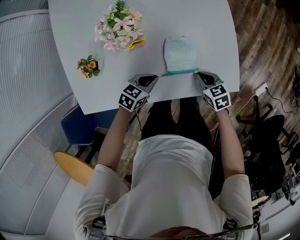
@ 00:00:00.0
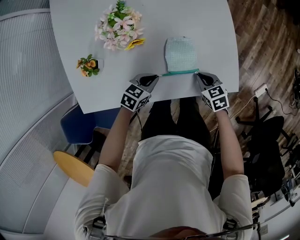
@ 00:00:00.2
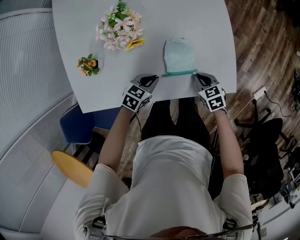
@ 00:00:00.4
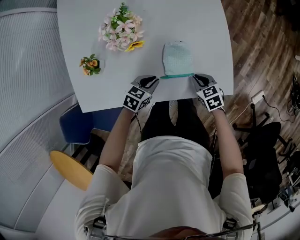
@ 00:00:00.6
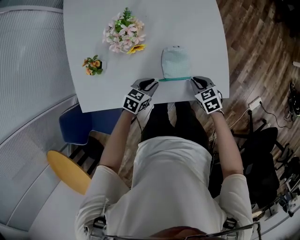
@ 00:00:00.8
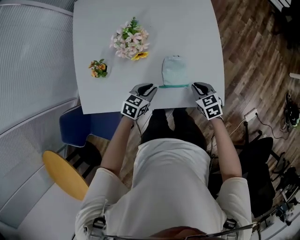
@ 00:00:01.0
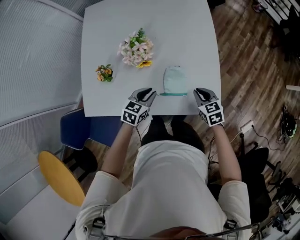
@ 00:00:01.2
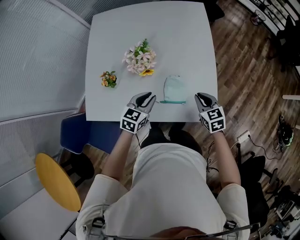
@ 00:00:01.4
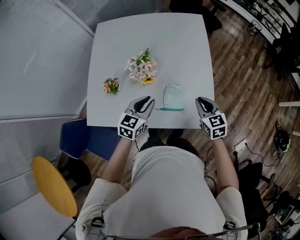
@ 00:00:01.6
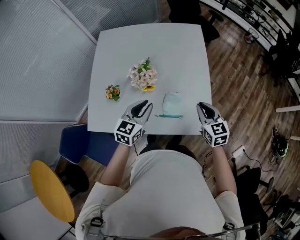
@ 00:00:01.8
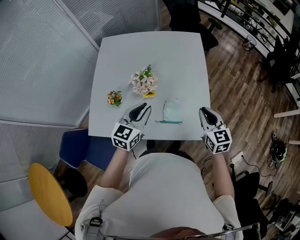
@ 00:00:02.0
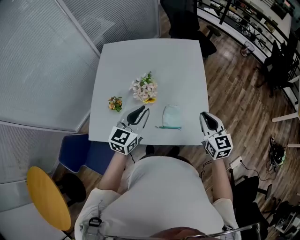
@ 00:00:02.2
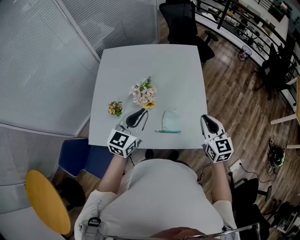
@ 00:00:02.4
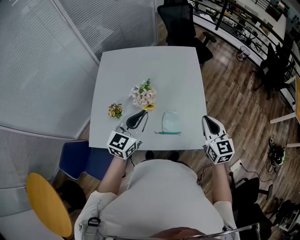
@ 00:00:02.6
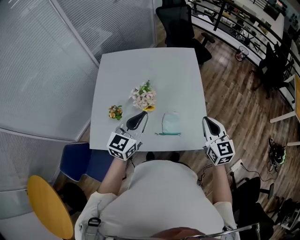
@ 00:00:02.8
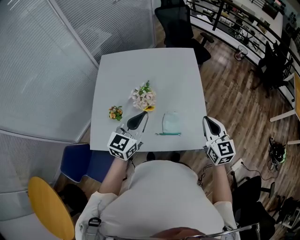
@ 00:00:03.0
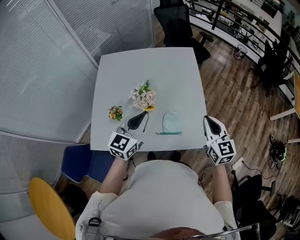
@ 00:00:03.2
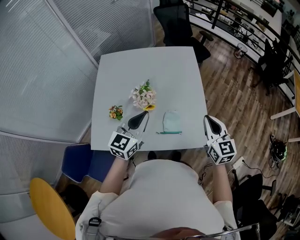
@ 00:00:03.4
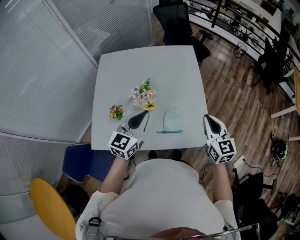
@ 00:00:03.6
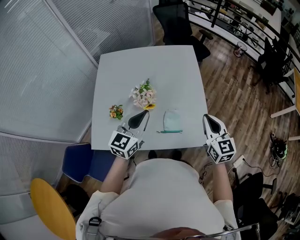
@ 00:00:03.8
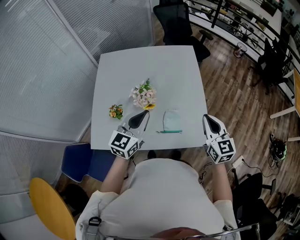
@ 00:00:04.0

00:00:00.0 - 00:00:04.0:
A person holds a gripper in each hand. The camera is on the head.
00:00:00.0 - 00:00:01.4: The two grippers go roughly 20 cm upward. The right gripper turns by about 20 degrees. The left gripper rotates approximately 30 degrees.
00:00:01.4 - 00:00:02.6: Both grippers travel together upward, roughly 25 cm. The right gripper swivels approximately 30 degrees; the left gripper rotates about 20 degrees.
00:00:02.6 - 00:00:04.0: The grippers stay close to where they were, moving slightly.

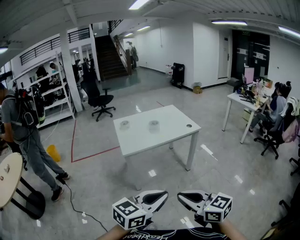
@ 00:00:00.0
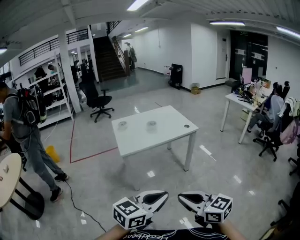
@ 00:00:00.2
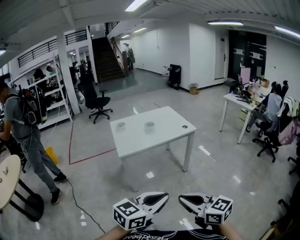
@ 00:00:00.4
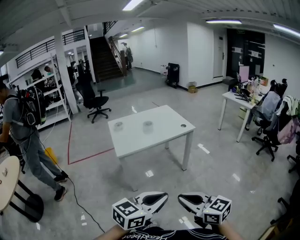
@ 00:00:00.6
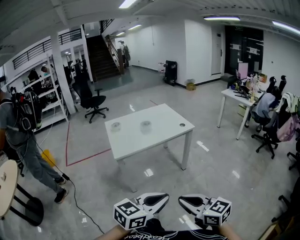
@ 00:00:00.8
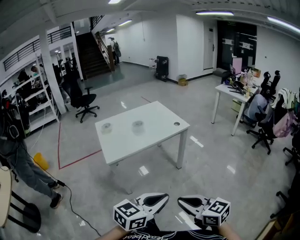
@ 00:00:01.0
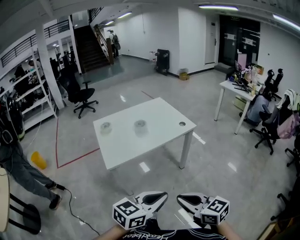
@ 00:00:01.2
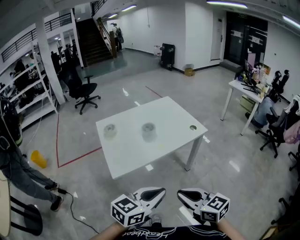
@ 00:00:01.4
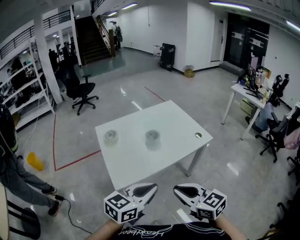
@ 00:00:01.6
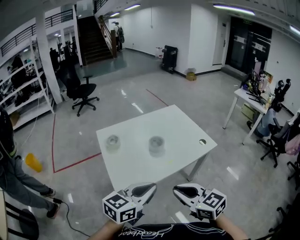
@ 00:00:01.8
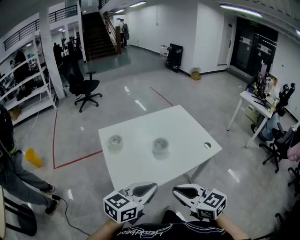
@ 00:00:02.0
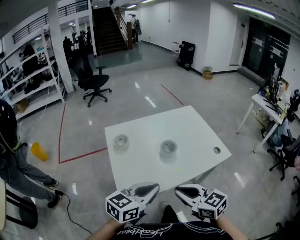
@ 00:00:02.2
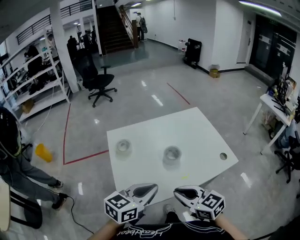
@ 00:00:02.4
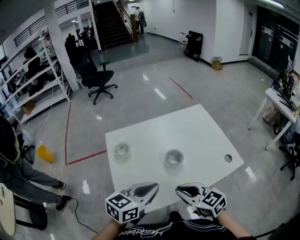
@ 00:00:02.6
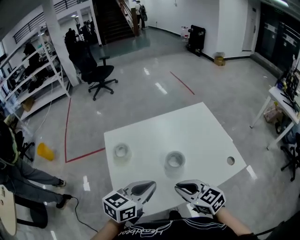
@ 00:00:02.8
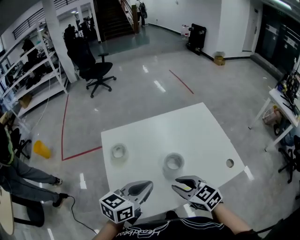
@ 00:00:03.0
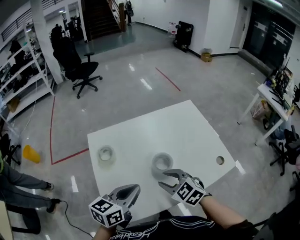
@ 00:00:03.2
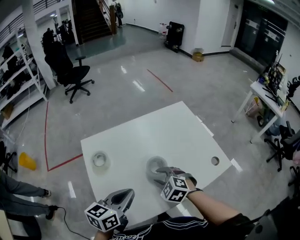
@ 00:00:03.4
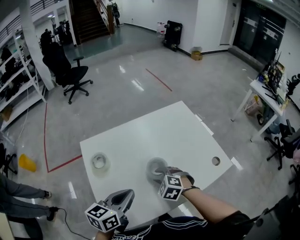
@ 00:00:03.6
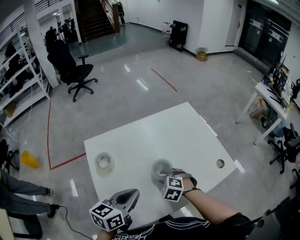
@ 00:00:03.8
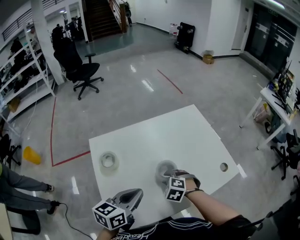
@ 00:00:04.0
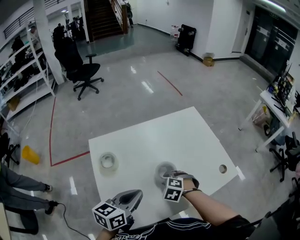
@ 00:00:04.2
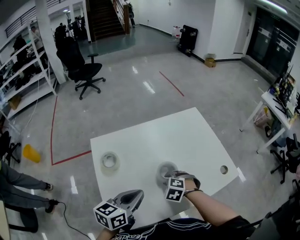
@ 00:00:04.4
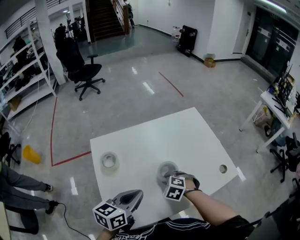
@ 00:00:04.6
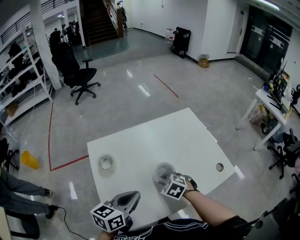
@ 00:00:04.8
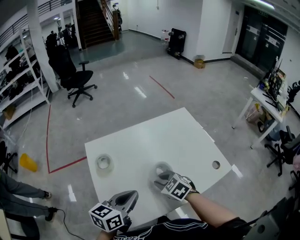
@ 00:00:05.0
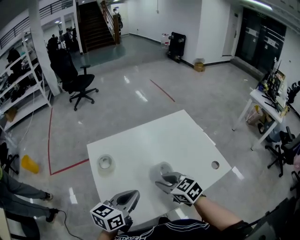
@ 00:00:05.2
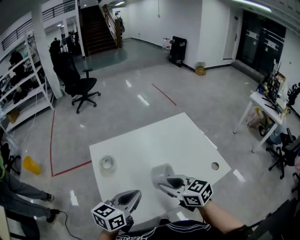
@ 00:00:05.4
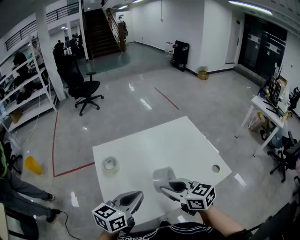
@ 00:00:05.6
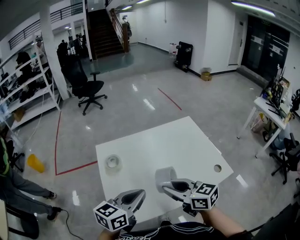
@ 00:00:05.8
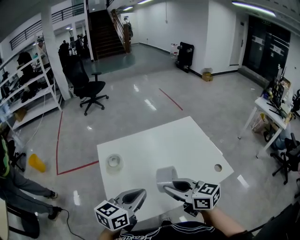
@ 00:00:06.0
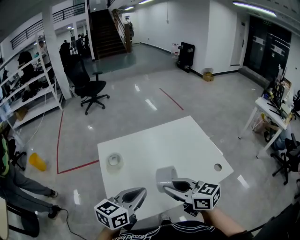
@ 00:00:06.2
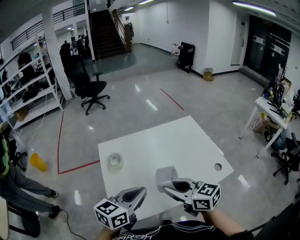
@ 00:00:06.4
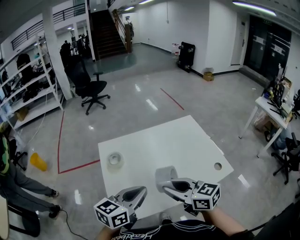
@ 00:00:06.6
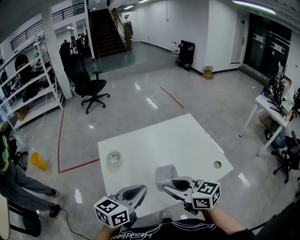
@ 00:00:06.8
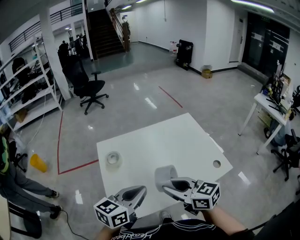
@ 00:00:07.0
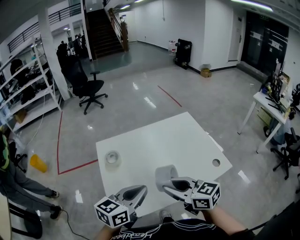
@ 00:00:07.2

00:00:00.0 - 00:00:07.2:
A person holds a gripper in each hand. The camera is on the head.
00:00:00.0 - 00:00:01.4: The grippers both shift forward by some 25 cm.
00:00:01.4 - 00:00:02.8: The grippers both shift forward by approximately 30 cm. The right gripper changes its angle by roughly 20 degrees.
00:00:02.8 - 00:00:04.4: The left gripper changes place by approximately 5 cm. Meanwhile the right gripper shifts some 20 cm downward and forward, angles its fingers downward, by roughly 40 degrees, and opens up.
00:00:04.4 - 00:00:05.8: The left gripper is displaced upward by roughly 5 cm, while the right gripper moves upward, approximately 20 cm, and tilts its fingers approximately 50 degrees upward.
00:00:05.8 - 00:00:07.2: The grippers move only a little.

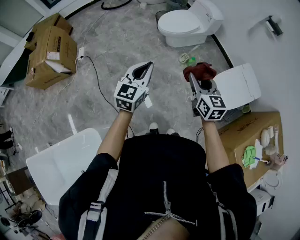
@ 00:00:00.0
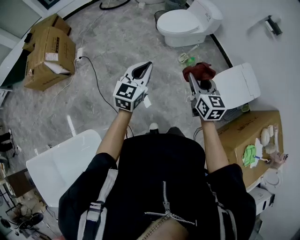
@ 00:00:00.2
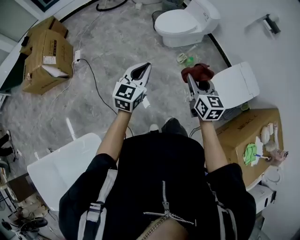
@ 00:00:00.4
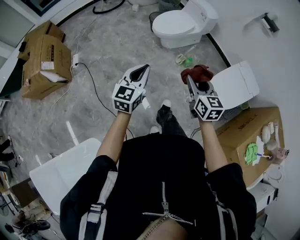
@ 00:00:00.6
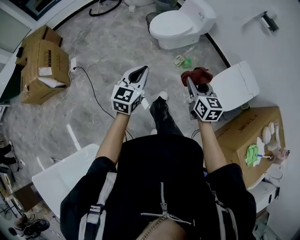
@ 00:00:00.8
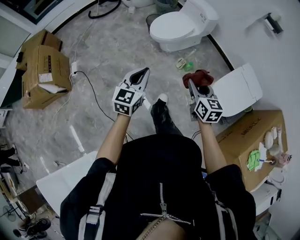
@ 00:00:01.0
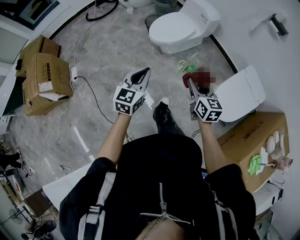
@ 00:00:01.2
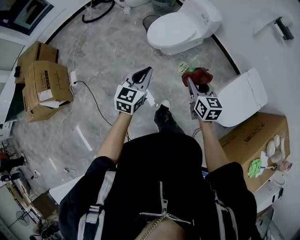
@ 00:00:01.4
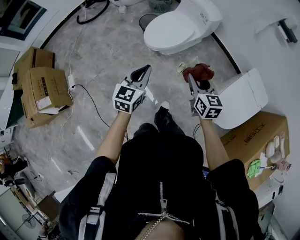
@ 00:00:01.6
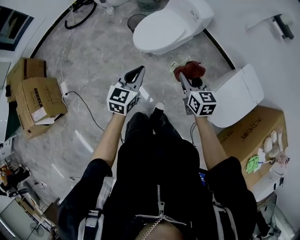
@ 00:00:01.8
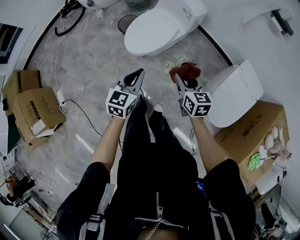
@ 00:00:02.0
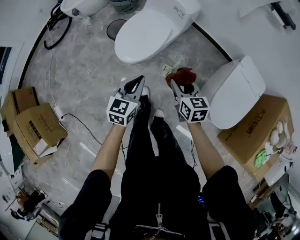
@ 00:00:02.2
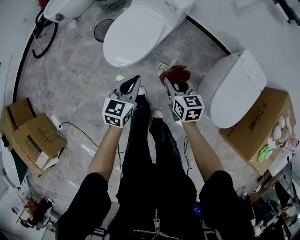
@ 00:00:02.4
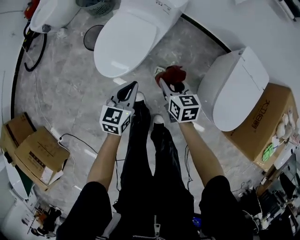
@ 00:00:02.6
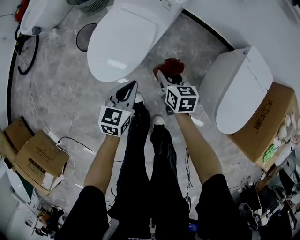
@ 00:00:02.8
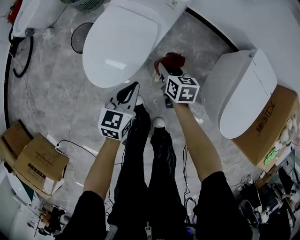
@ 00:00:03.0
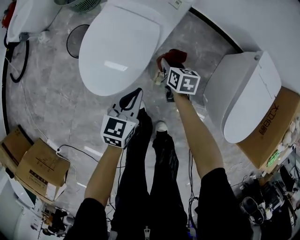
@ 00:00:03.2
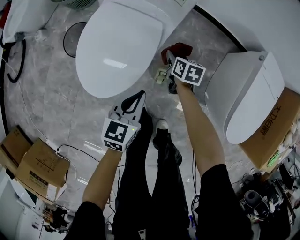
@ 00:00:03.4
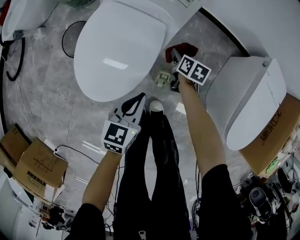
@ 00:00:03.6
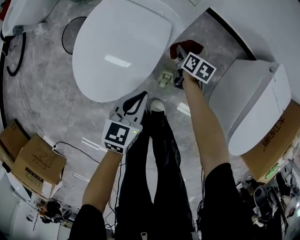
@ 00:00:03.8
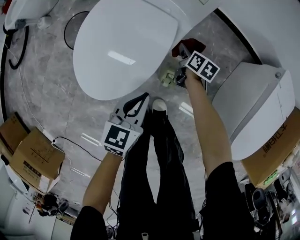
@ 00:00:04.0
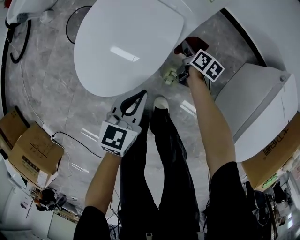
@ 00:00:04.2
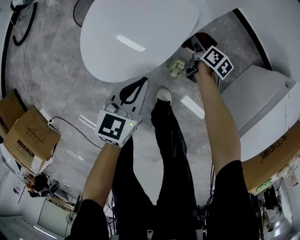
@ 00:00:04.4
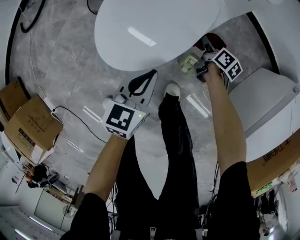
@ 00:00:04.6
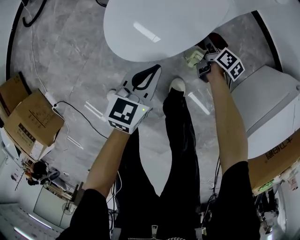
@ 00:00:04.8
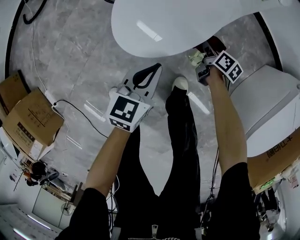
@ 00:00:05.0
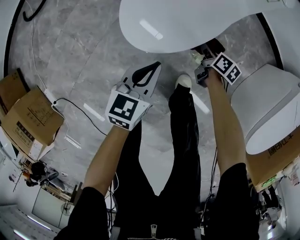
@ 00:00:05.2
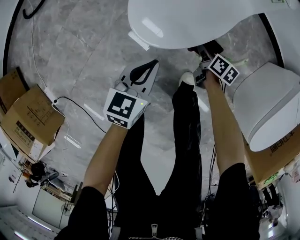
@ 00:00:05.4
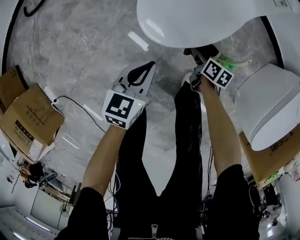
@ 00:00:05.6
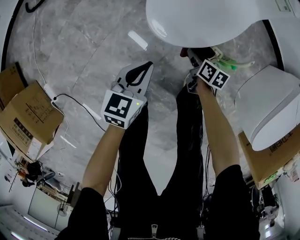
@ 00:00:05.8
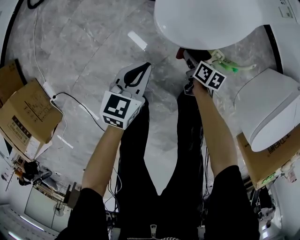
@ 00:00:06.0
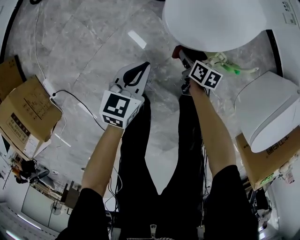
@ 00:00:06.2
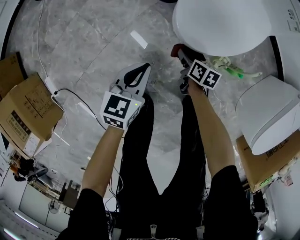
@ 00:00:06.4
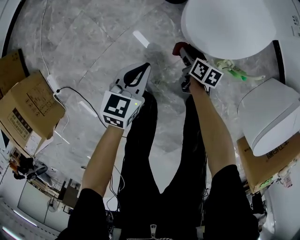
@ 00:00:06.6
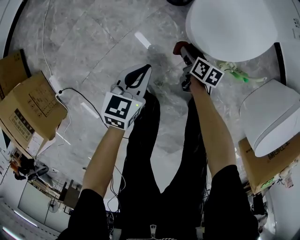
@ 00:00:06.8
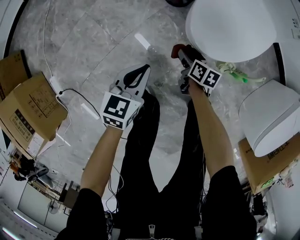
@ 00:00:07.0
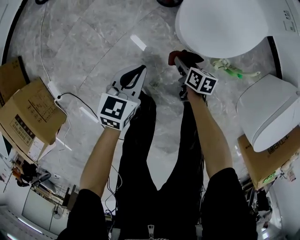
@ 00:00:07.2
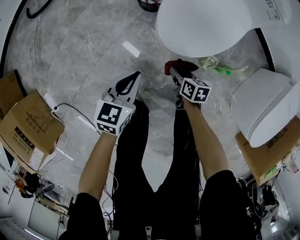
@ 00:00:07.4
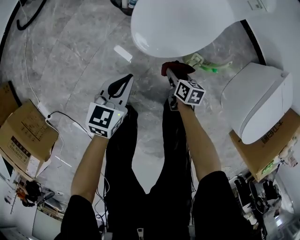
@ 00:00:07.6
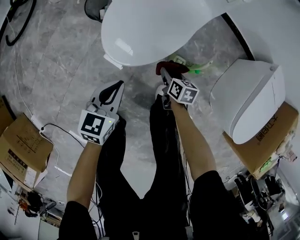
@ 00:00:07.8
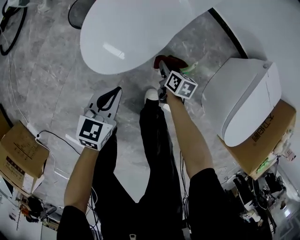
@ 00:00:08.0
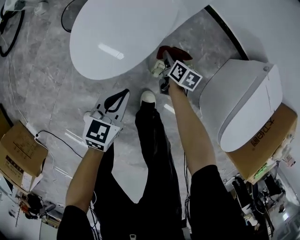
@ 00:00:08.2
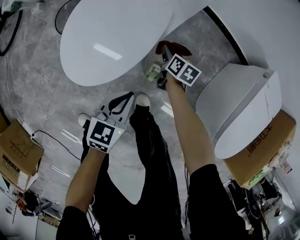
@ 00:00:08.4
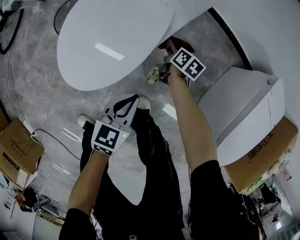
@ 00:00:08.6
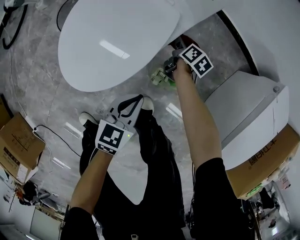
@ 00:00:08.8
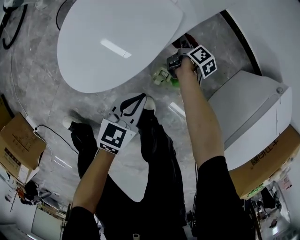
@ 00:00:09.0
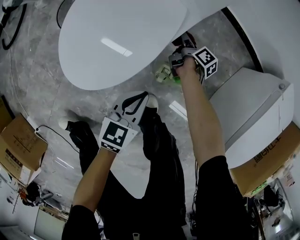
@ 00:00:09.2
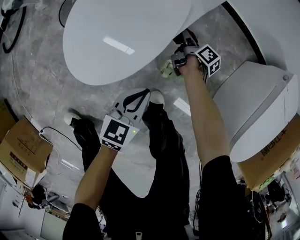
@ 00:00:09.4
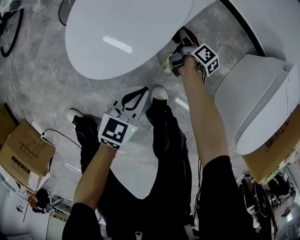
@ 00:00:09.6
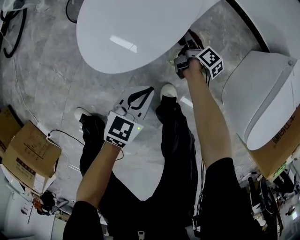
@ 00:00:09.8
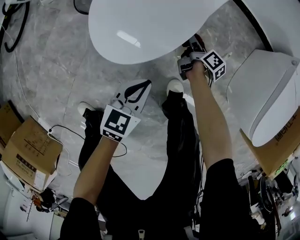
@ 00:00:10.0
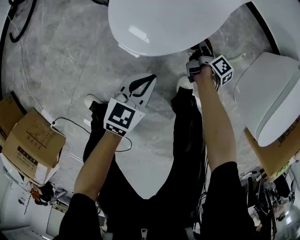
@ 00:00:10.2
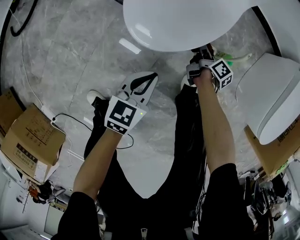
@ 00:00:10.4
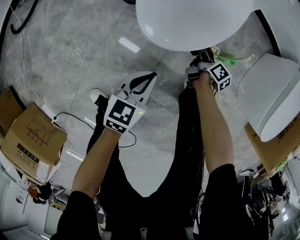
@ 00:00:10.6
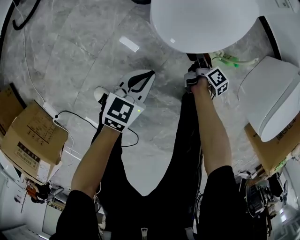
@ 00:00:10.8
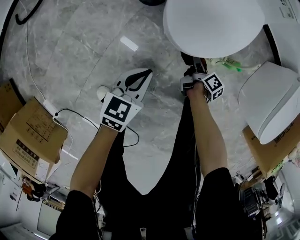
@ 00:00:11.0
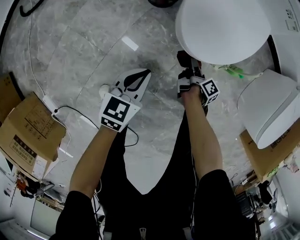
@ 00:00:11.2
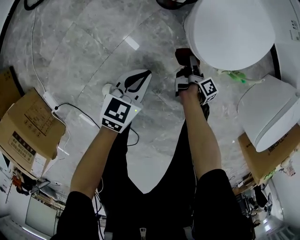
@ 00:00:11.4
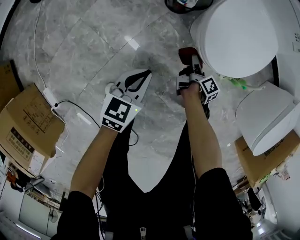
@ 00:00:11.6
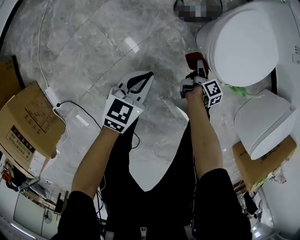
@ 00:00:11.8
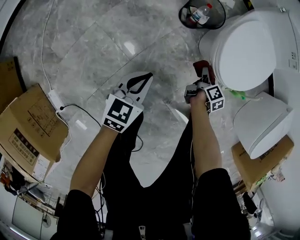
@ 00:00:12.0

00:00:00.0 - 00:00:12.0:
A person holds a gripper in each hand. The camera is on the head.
00:00:00.0 - 00:00:01.6: Both grippers move forward, about 35 cm.
00:00:01.6 - 00:00:03.0: Both grippers move downward and forward, some 50 cm. The left gripper turns by roughly 30 degrees, while the right gripper changes its angle by approximately 40 degrees.
00:00:03.0 - 00:00:04.4: The left gripper shifts some 10 cm downward, while the right gripper travels downward and forward by approximately 25 cm, and turns by some 30 degrees.
00:00:04.4 - 00:00:06.0: The two grippers go roughly 30 cm to the left and backward. The right gripper turns by about 20 degrees.
00:00:06.0 - 00:00:07.6: The right gripper moves about 15 cm to the left and comes back, while the left gripper moves some 10 cm to the left and comes back.
00:00:07.6 - 00:00:09.0: The left gripper is displaced to the right and forward by about 30 cm. The right gripper shifts approximately 40 cm forward and to the right, and turns by about 40 degrees.
00:00:09.0 - 00:00:10.4: The right gripper heads backward and to the left, covering some 25 cm, while the left gripper travels to the left and backward by about 25 cm.
00:00:10.4 - 00:00:12.0: The grippers both shift to the left by roughly 35 cm.
